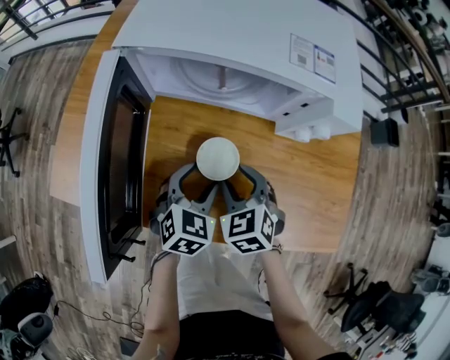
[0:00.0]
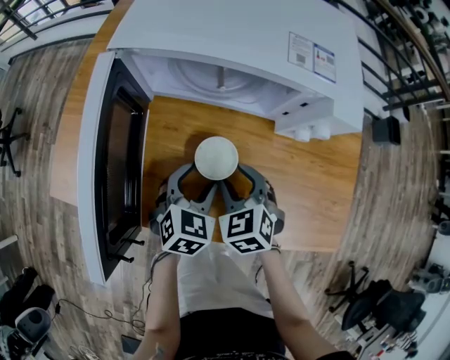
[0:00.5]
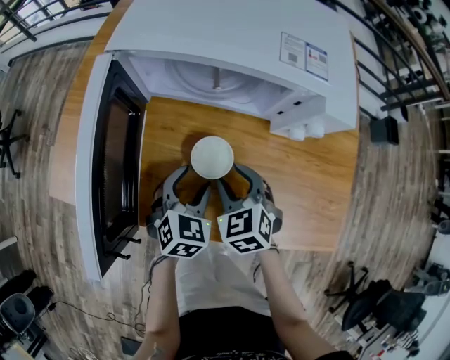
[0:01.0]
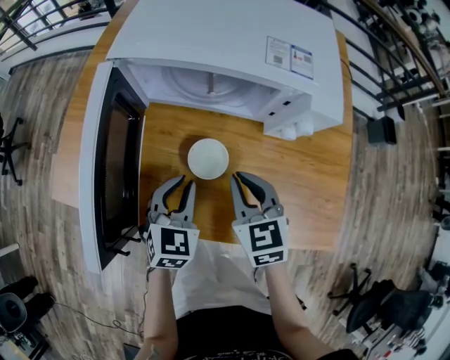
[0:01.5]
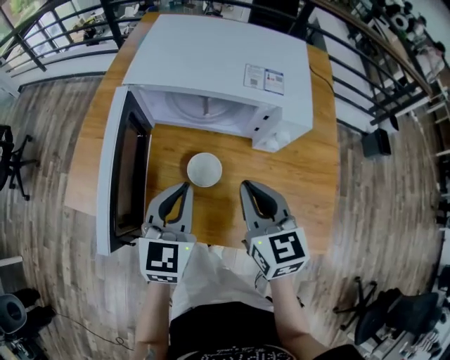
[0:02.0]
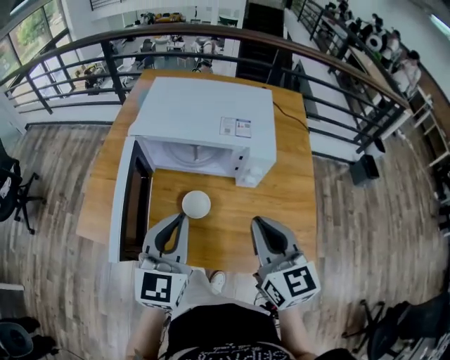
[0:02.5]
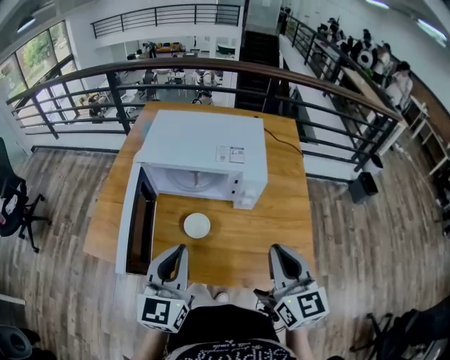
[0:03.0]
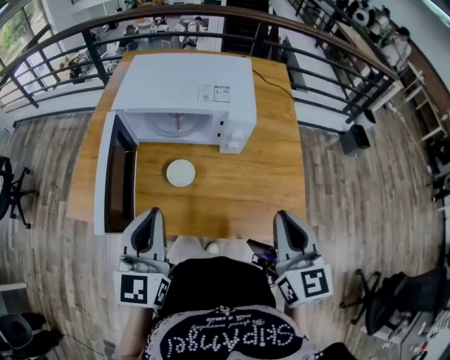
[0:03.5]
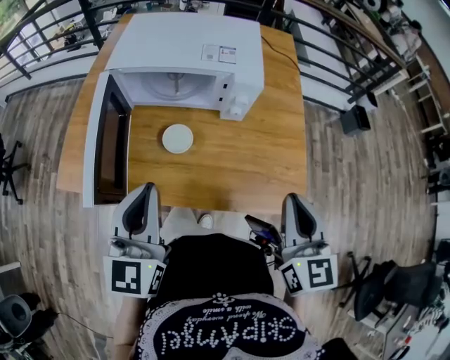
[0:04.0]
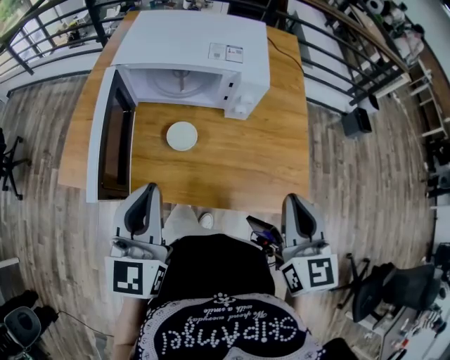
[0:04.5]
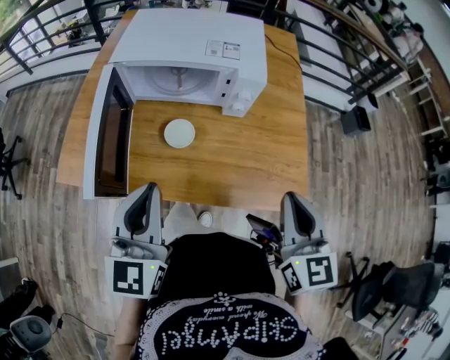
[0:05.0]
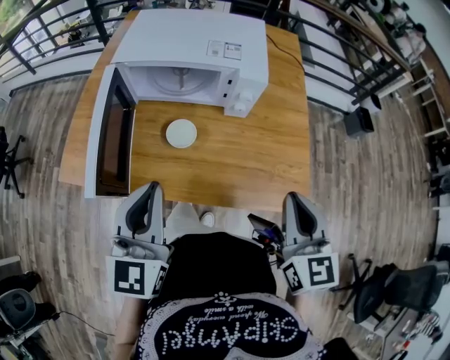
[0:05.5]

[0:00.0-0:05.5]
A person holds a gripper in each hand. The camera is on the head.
0.0 to 2.0 s: The two grippers go roughly 20 cm upward. The left gripper changes its angle by some 30 degrees, and closes its fingers. Meanwhile the right gripper rotates some 40 degrees, and closes.
2.0 to 3.5 s: The right gripper moves to the right, backward and upward, roughly 25 cm; the left gripper heads upward and backward, covering about 15 cm.
3.5 to 5.5 s: The grippers make only small movements.

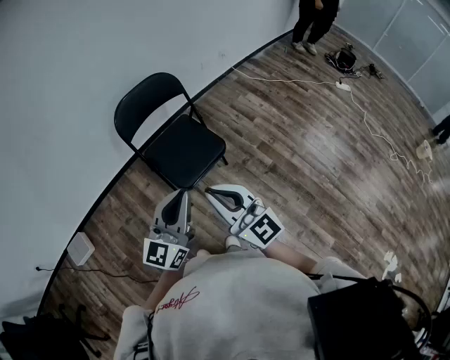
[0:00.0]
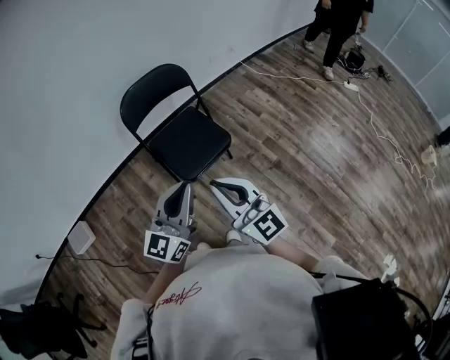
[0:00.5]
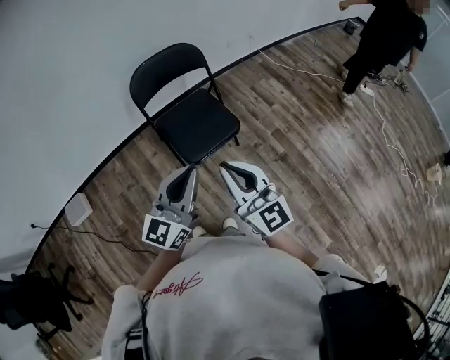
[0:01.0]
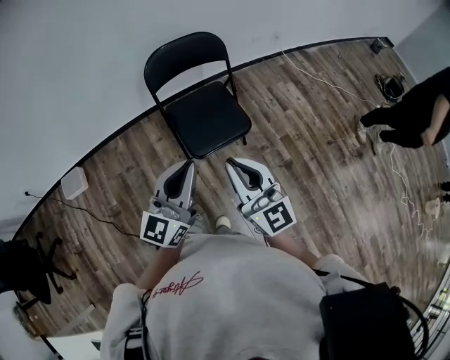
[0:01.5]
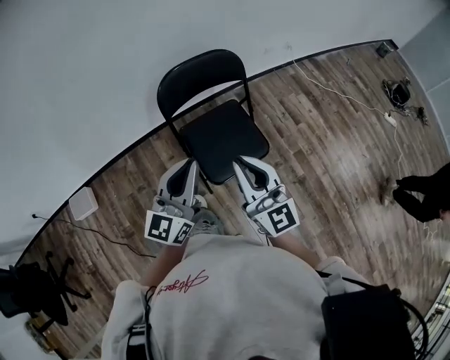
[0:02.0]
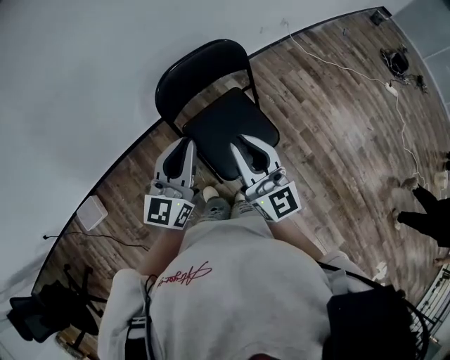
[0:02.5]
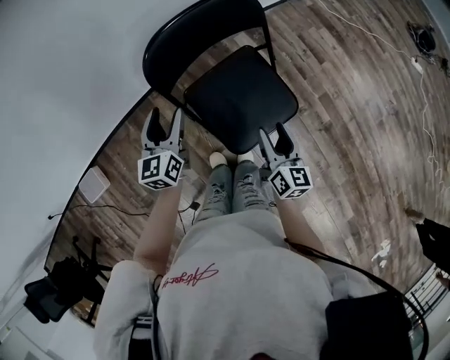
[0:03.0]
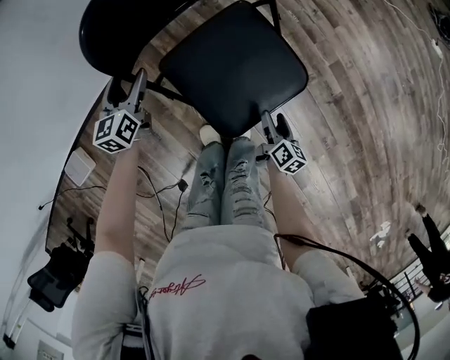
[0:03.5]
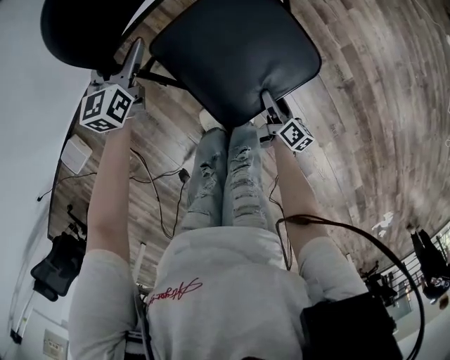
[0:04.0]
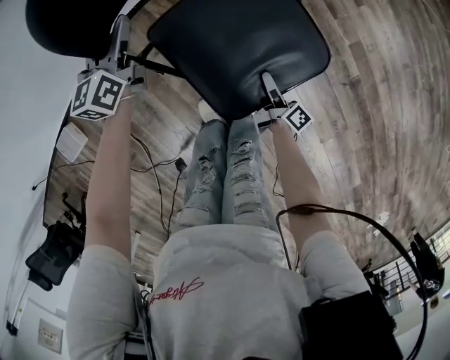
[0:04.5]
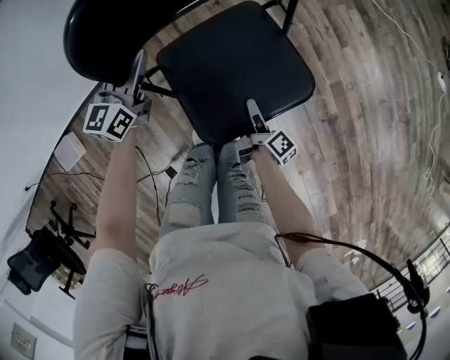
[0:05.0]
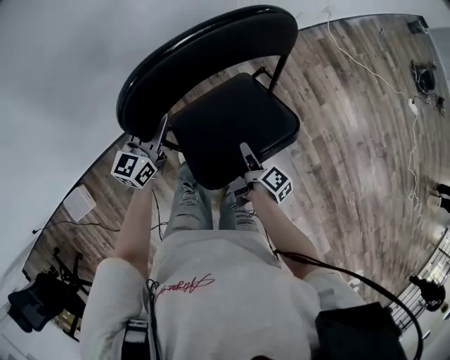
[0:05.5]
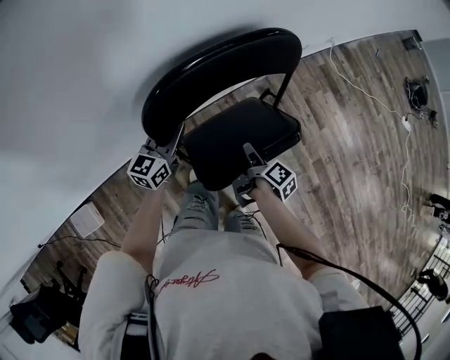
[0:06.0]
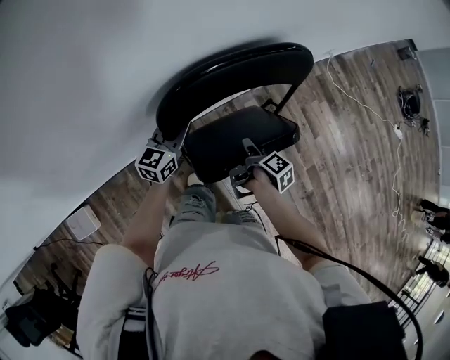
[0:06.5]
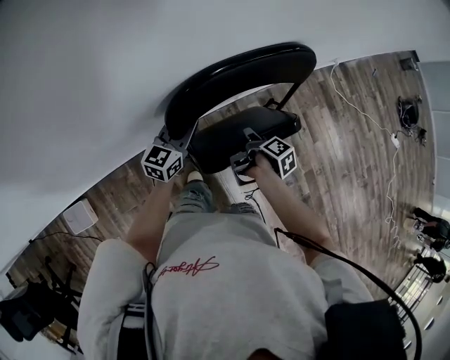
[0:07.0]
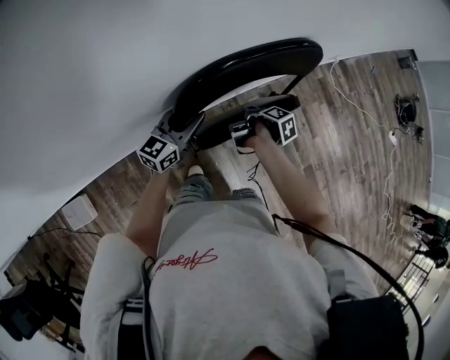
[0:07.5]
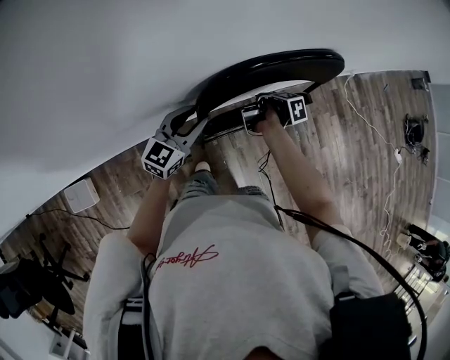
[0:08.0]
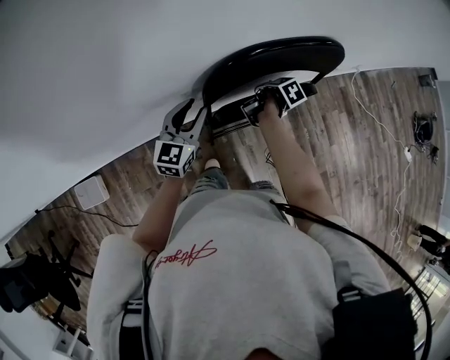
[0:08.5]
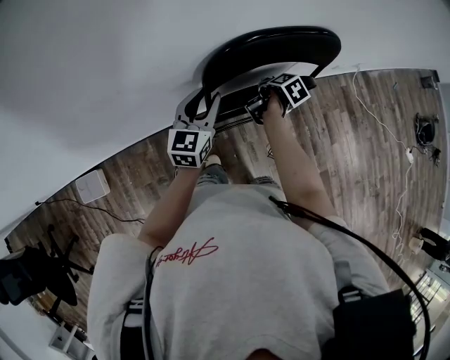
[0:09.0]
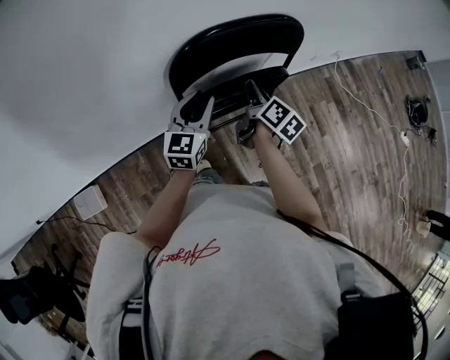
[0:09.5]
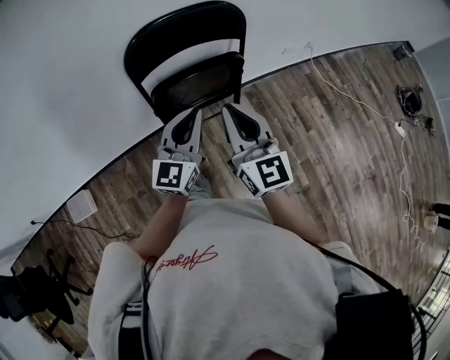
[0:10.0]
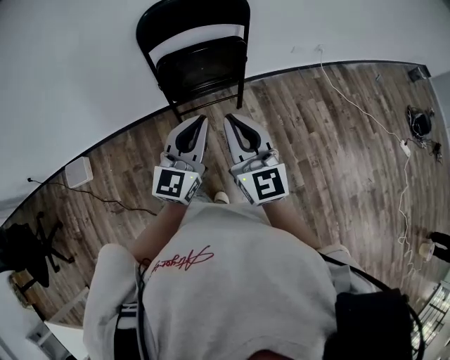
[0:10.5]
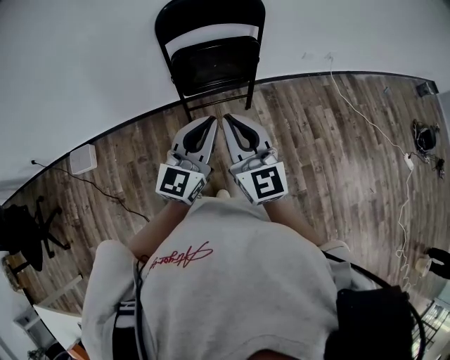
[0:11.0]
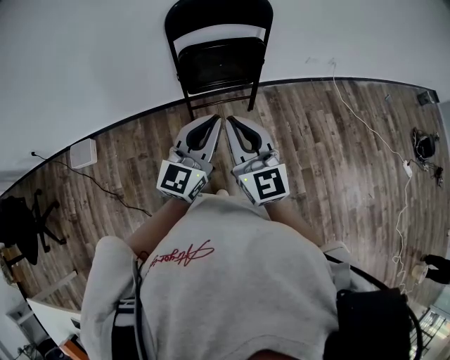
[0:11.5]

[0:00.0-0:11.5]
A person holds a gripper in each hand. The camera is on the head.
0.0 to 2.0 s: The right gripper shifts about 20 cm forward, while the left gripper is displaced forward and to the left by about 20 cm.
2.0 to 4.0 s: The right gripper moves downward, about 60 cm, rolls clockwise, seen from behind, by some 70 degrees, and opens up. The left gripper is displaced downward and forward by roughly 50 cm, tilts its fingers approximately 30 degrees downward, and opens up.
4.0 to 6.0 s: The right gripper heads forward, upward and to the left, covering some 40 cm, changes its angle by some 20 degrees, and closes. Meanwhile the left gripper moves upward, forward and to the left, roughly 20 cm, and closes up.
6.0 to 7.5 s: The left gripper changes place by about 5 cm. Meanwhile the right gripper goes some 15 cm forward and to the left.
7.5 to 9.5 s: The left gripper shifts some 10 cm upward, and turns by about 30 degrees. Meanwhile the right gripper moves upward, about 15 cm, and points its fingers about 30 degrees further upward.
9.5 to 11.5 s: The left gripper is displaced backward and to the right by about 40 cm. Meanwhile the right gripper shifts some 40 cm backward and upward, rotates around the line of its fingers by about 60 degrees, counterclockwise from behind, and closes.

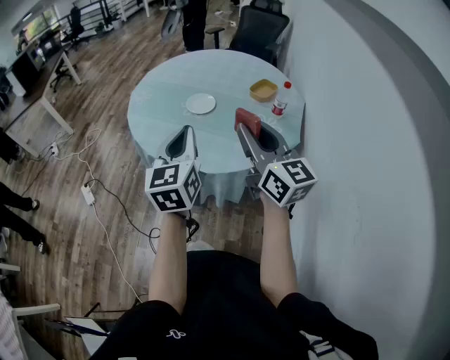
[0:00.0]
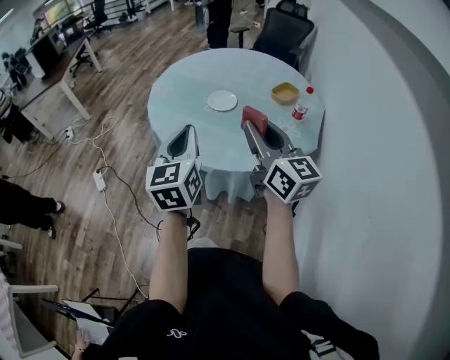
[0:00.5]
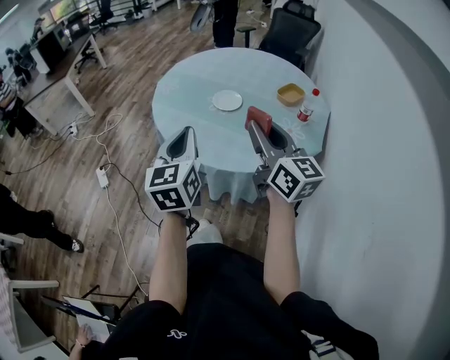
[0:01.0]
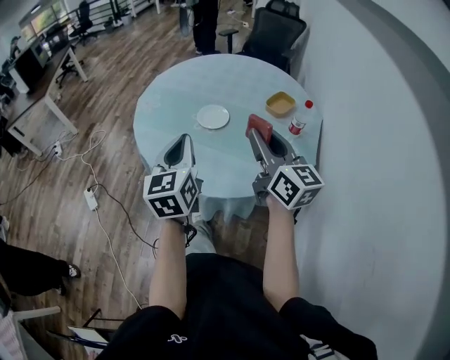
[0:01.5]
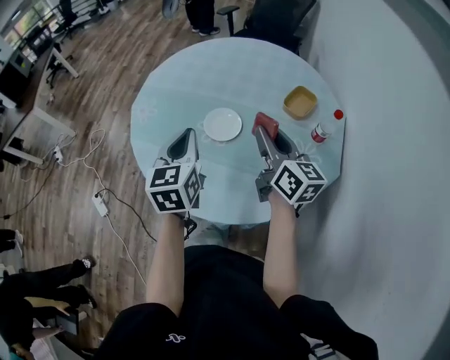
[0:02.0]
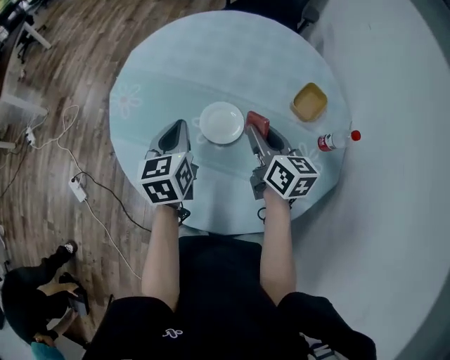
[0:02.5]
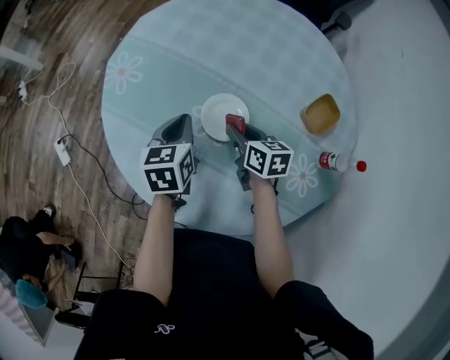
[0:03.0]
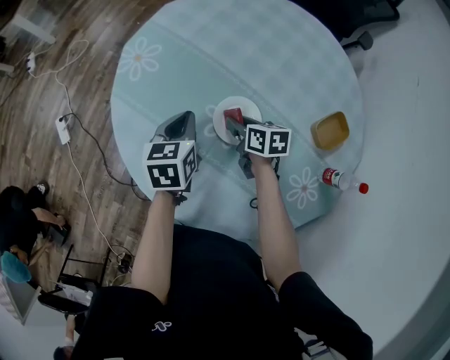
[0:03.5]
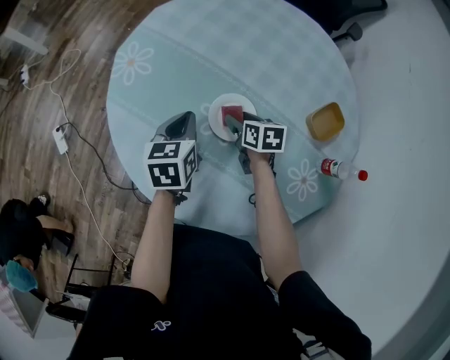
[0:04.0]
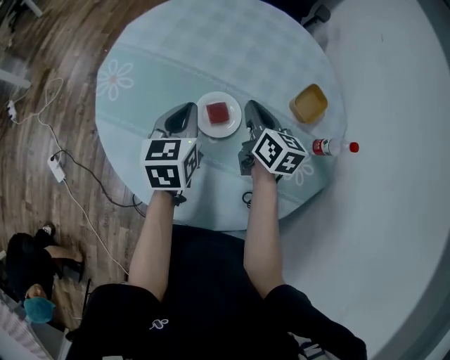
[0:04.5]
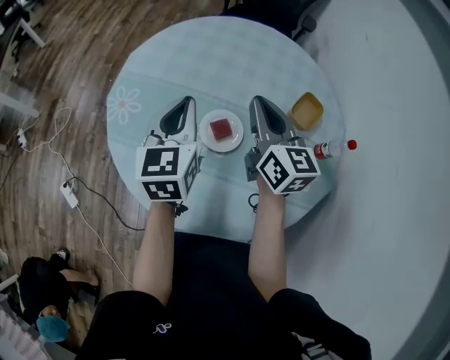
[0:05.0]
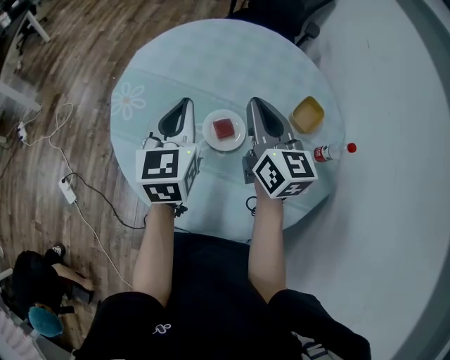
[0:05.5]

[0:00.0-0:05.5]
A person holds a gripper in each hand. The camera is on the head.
0.0 to 2.0 s: Both grippers travel together forward, about 30 cm. The right gripper swivels approximately 20 degrees.
2.0 to 3.5 s: The two grippers go about 30 cm downward and forward. The left gripper rotates approximately 30 degrees. The right gripper tips its fingers downward by about 40 degrees.
3.5 to 5.5 s: The right gripper heads upward, covering some 30 cm, tips its fingers upward by roughly 40 degrees, and closes its fingers, while the left gripper goes some 20 cm upward, and rotates roughly 30 degrees.

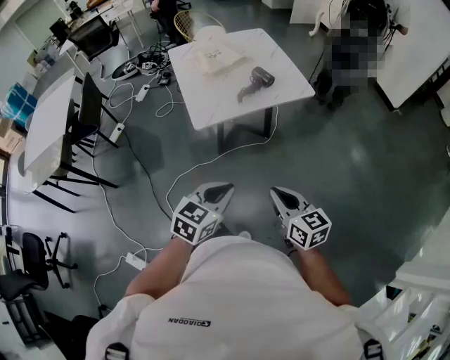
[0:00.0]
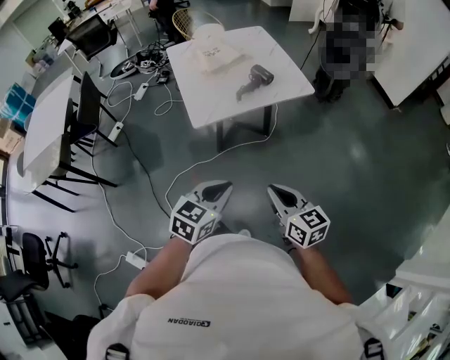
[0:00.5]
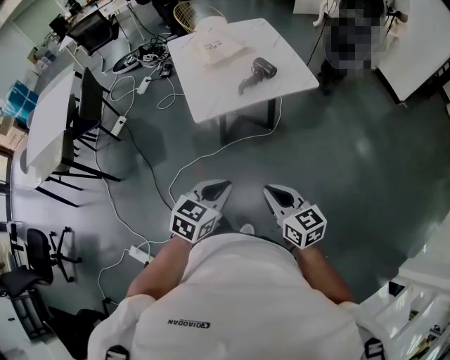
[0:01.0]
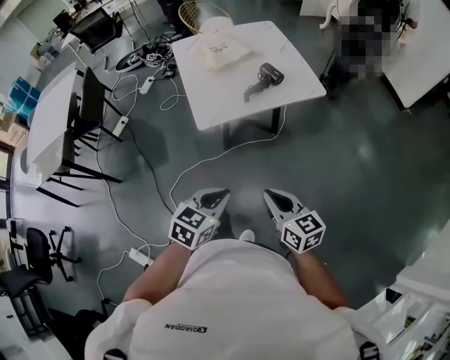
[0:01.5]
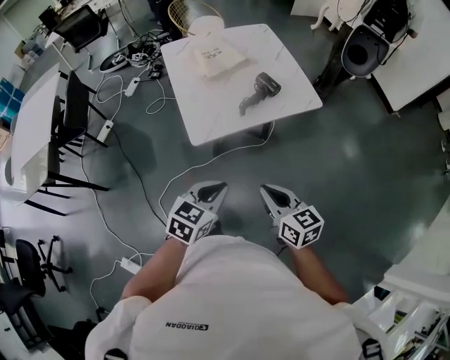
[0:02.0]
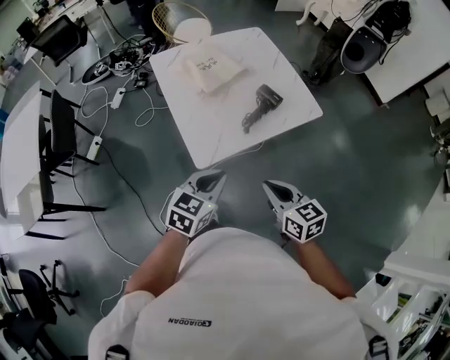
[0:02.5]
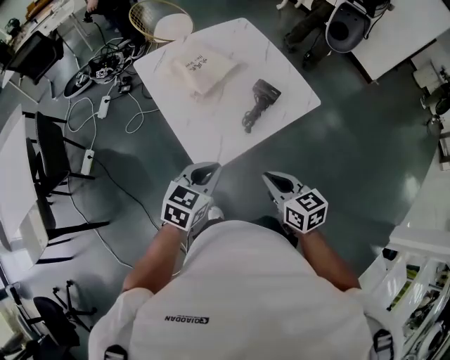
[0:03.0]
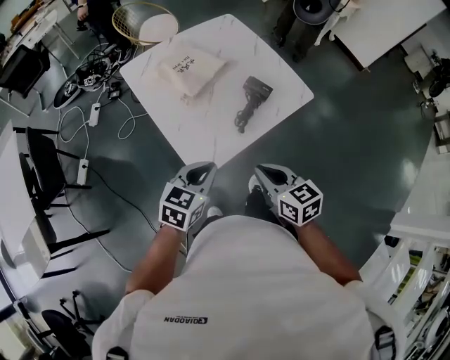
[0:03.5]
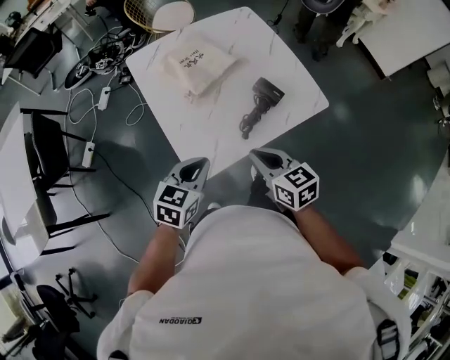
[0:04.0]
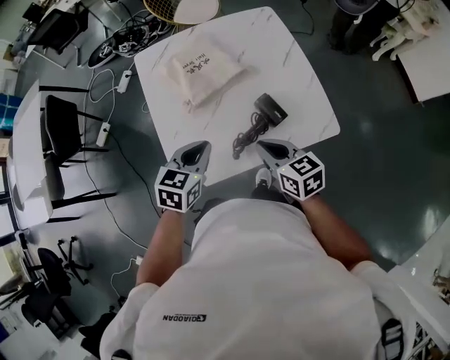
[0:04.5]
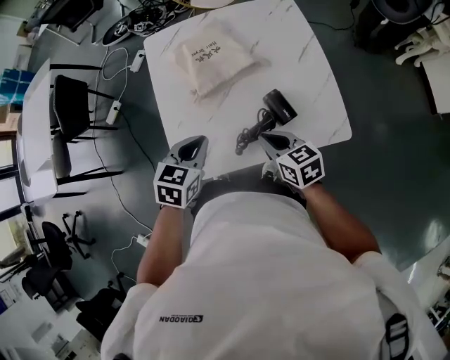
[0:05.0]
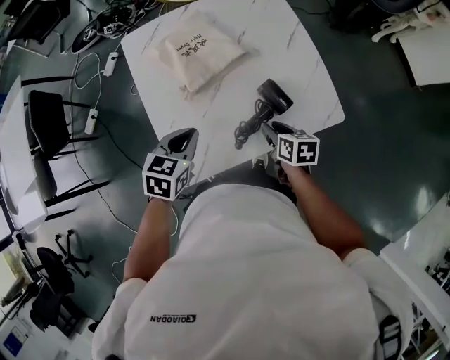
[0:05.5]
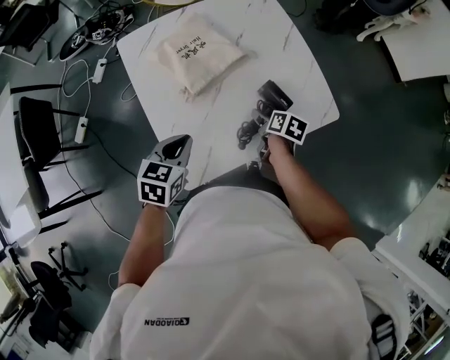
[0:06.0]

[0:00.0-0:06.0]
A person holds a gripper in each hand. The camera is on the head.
0.0 to 2.0 s: The left gripper goes some 15 cm forward. The right gripper travels forward and to the left by roughly 15 cm.
2.0 to 4.0 s: The right gripper is displaced forward by about 25 cm. The left gripper is displaced forward and to the left by about 30 cm.
4.0 to 6.0 s: The left gripper moves approximately 15 cm; the right gripper ends up some 30 cm from where it was, swivels roughly 50 degrees, and opens.
